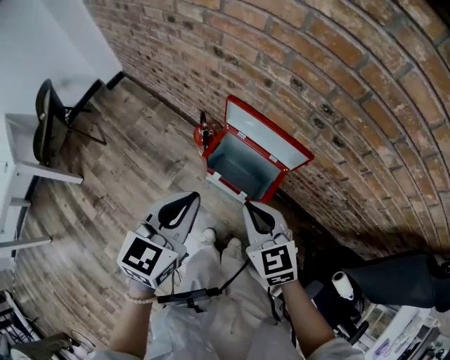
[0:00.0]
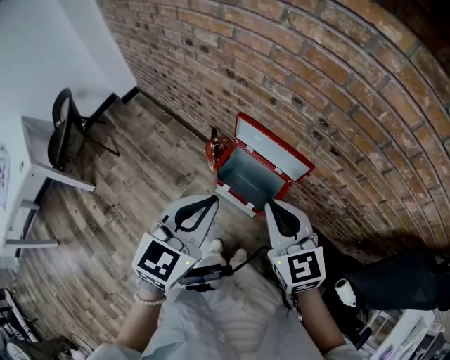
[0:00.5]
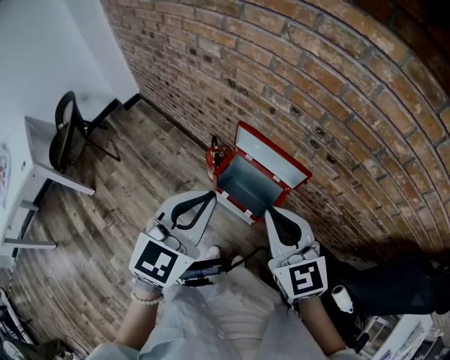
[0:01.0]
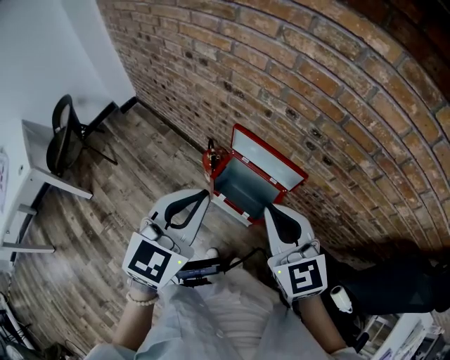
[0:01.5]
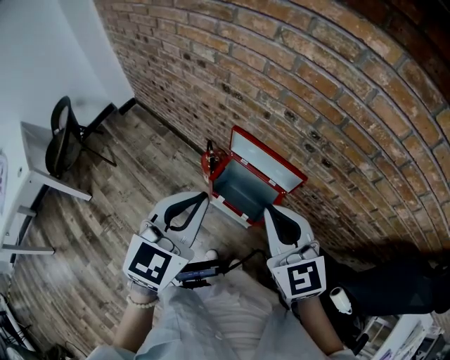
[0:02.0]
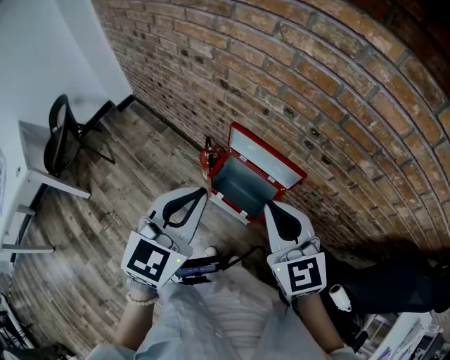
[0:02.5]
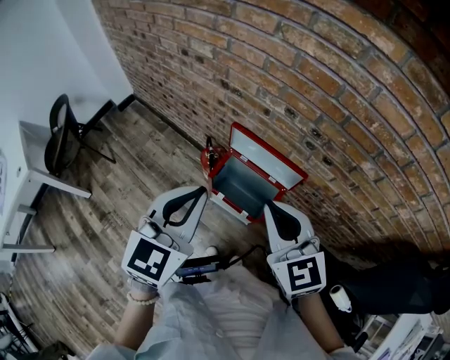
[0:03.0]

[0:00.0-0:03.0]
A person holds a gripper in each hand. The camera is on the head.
0:00.0 to 0:01.5: The two grippers go roughly 15 cm upward.
0:01.5 to 0:03.0: The grippers make only small movements.

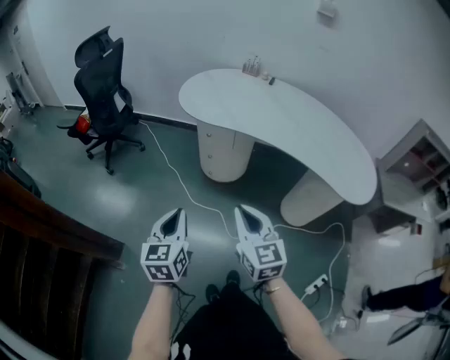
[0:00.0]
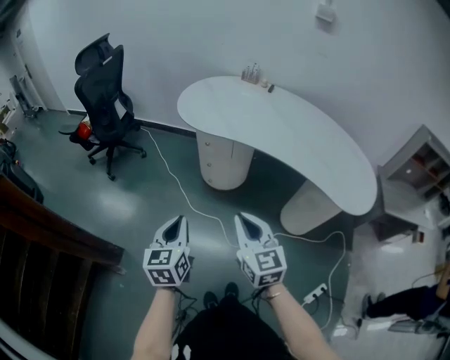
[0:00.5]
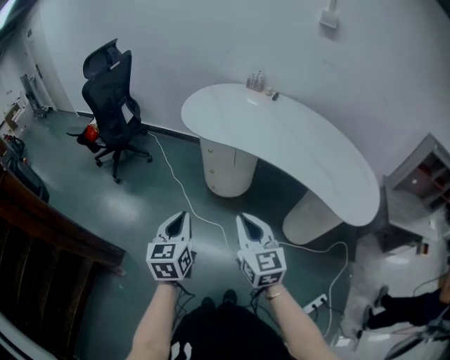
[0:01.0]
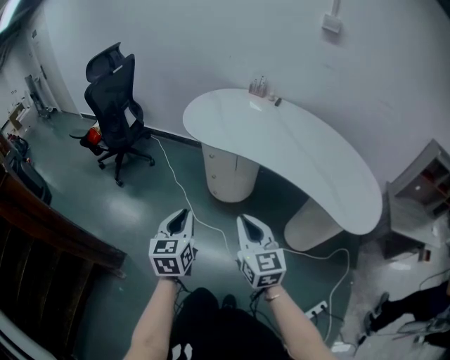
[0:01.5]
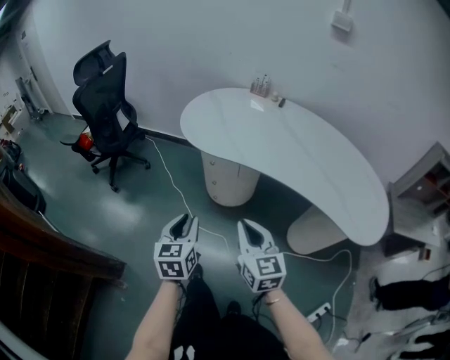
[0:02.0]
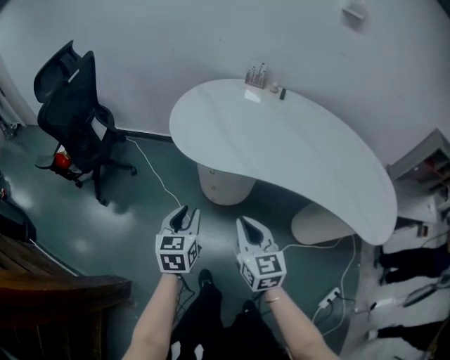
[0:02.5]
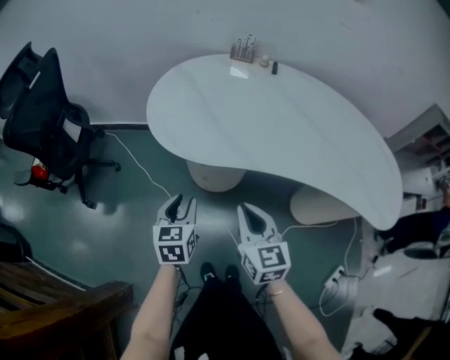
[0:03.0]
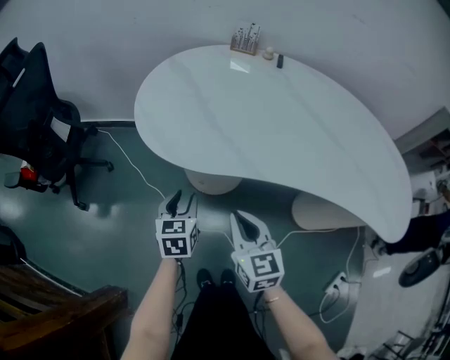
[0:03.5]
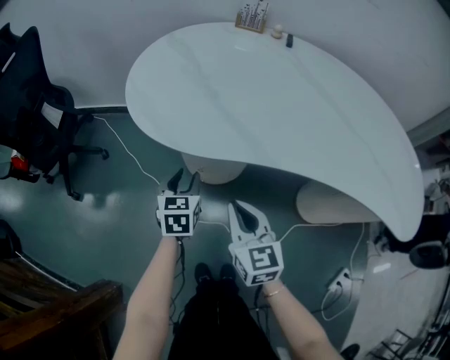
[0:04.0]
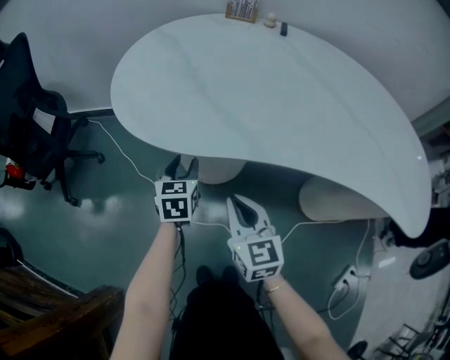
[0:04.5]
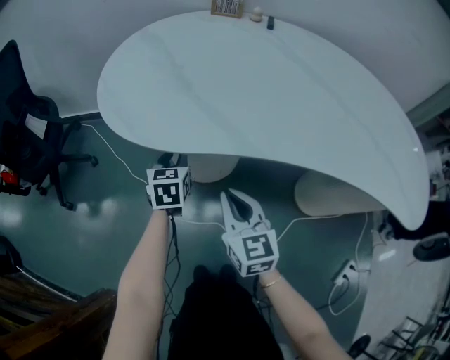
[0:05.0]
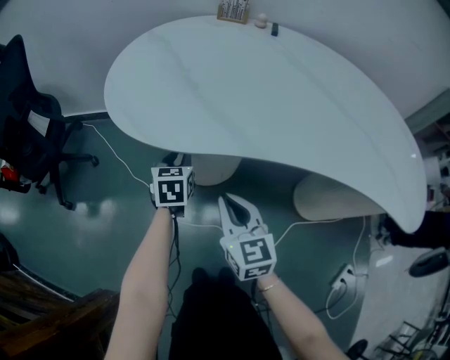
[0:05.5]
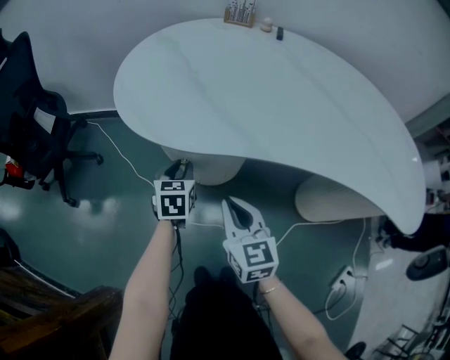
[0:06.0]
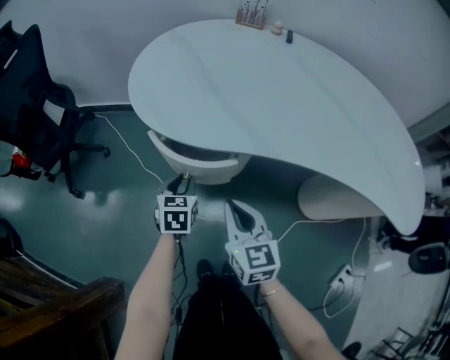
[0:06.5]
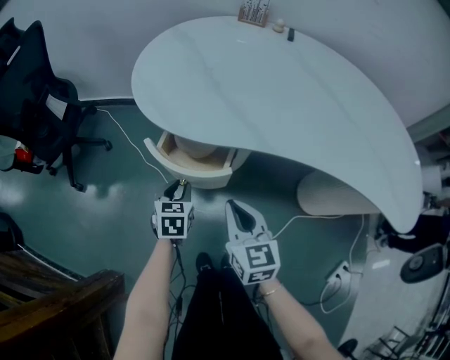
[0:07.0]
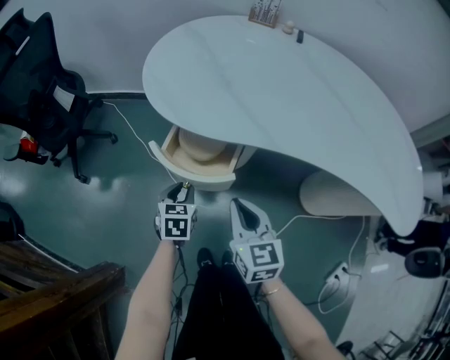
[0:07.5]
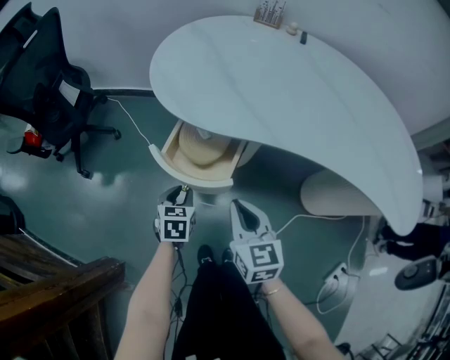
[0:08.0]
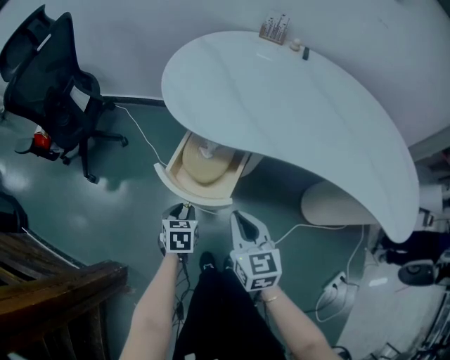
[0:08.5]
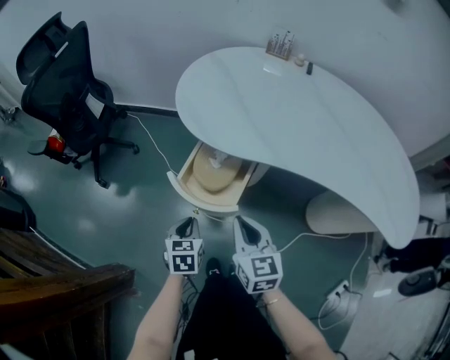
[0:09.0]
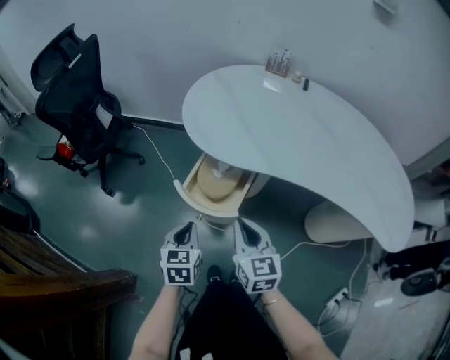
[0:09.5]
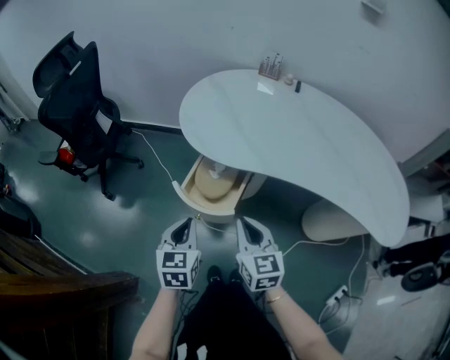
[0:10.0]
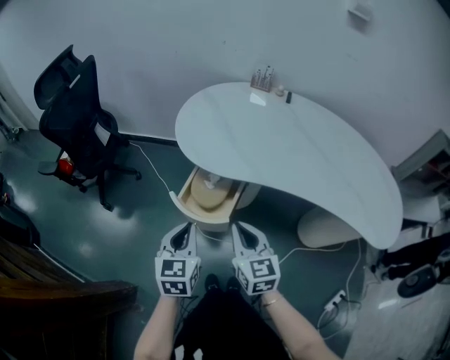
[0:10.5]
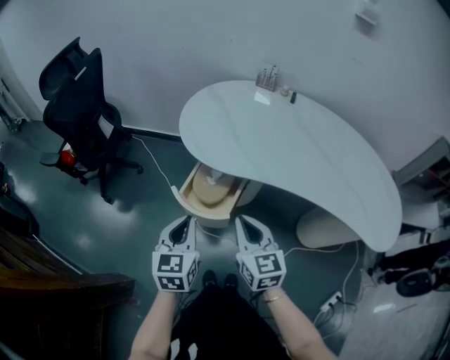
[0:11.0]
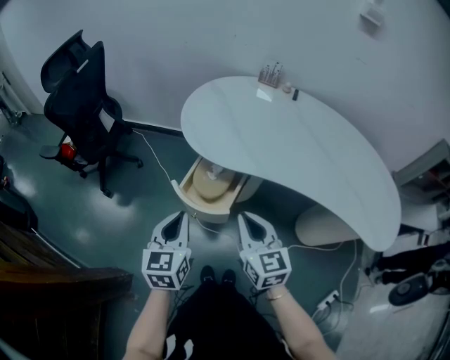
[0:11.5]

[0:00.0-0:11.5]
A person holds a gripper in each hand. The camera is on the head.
0:00.0 to 0:02.0: The two grippers go about 15 cm forward. The left gripper opens.
0:02.0 to 0:04.0: Both grippers move forward and downward, roughly 35 cm.
0:06.0 to 0:07.5: The right gripper ends up approximately 5 cm from where it was; the left gripper moves backward and to the left, some 15 cm.
0:07.5 to 0:09.5: The right gripper moves upward, approximately 10 cm. The left gripper moves upward and backward, some 20 cm, and closes up.
0:09.5 to 0:11.5: The right gripper heads upward, covering some 10 cm. The left gripper heads upward, covering roughly 15 cm.

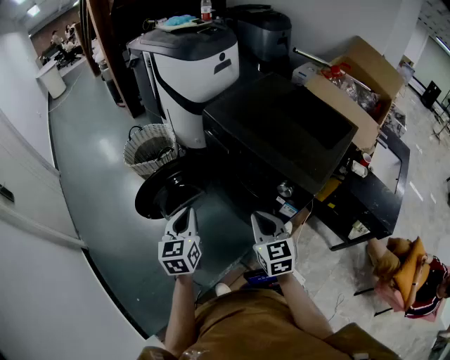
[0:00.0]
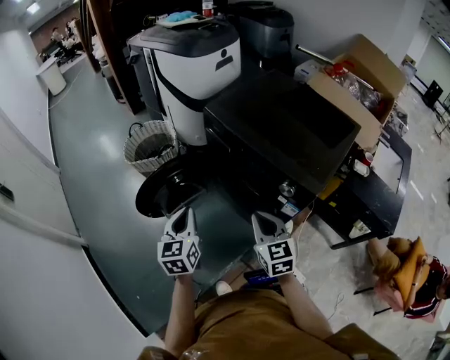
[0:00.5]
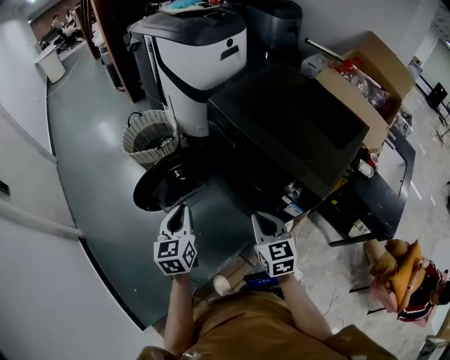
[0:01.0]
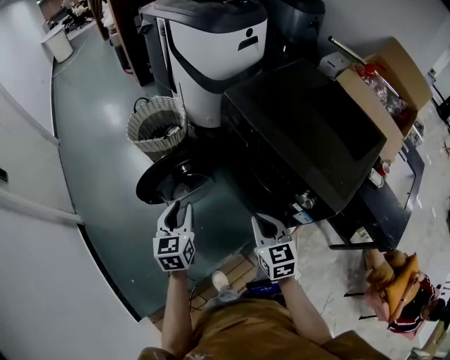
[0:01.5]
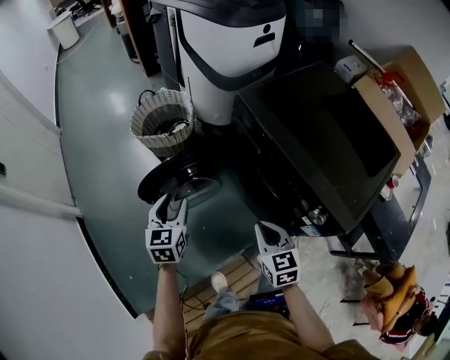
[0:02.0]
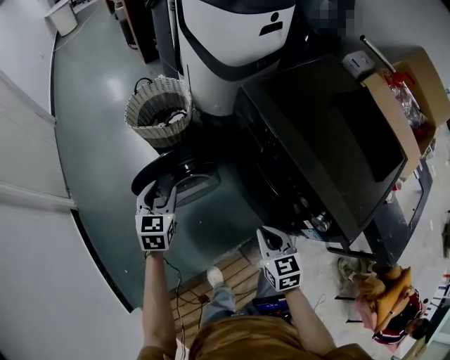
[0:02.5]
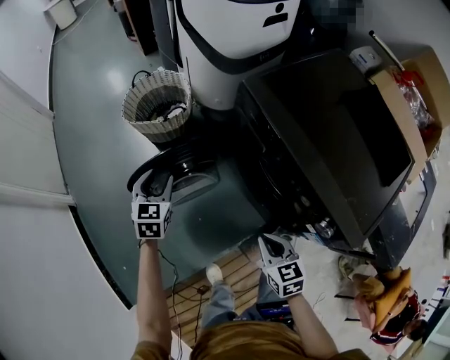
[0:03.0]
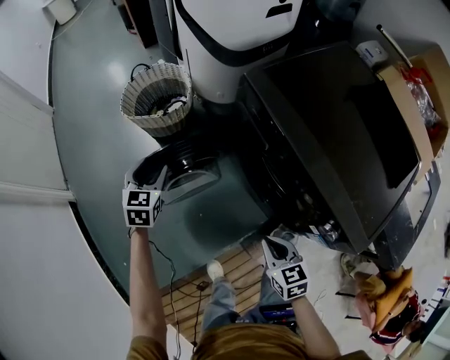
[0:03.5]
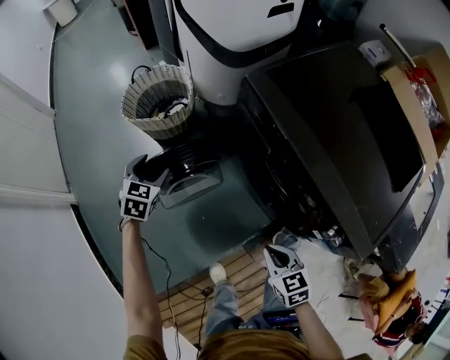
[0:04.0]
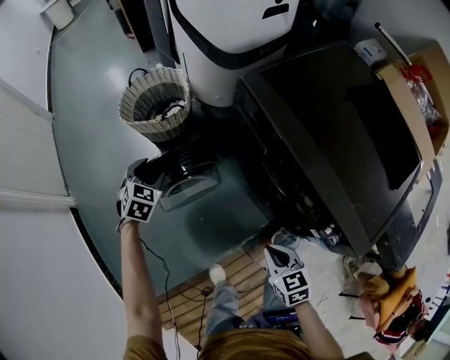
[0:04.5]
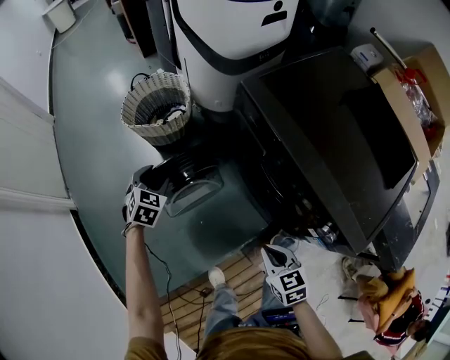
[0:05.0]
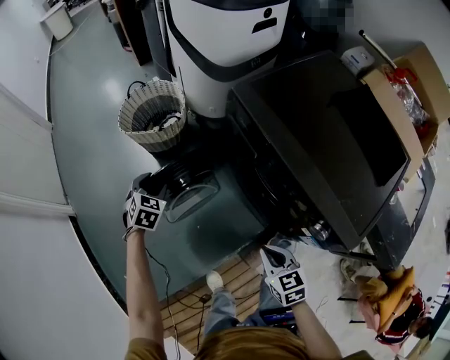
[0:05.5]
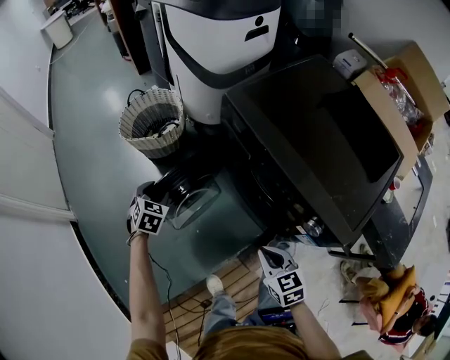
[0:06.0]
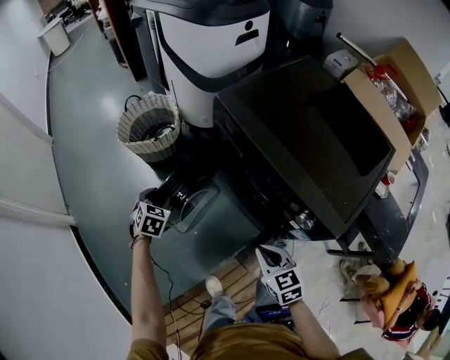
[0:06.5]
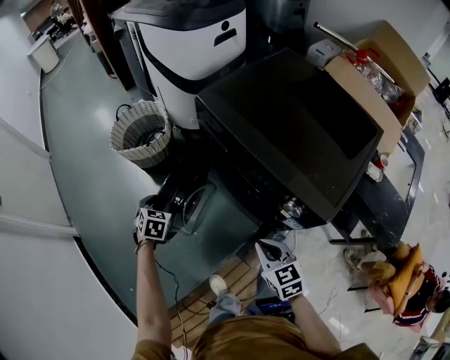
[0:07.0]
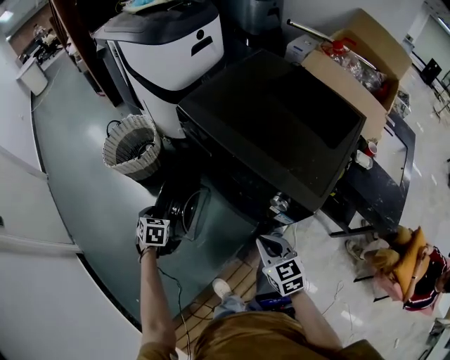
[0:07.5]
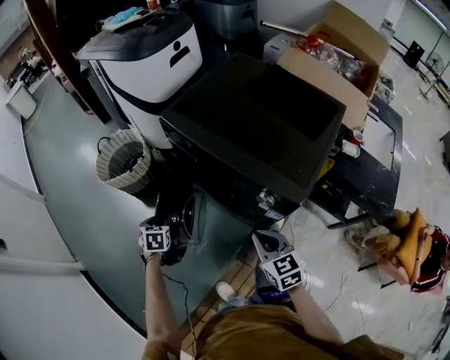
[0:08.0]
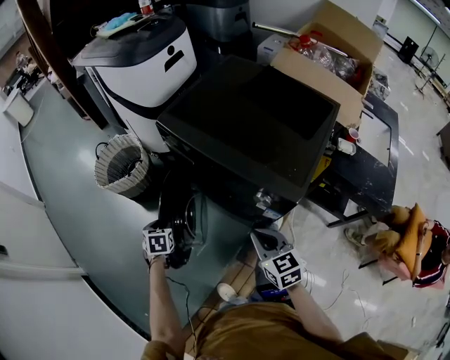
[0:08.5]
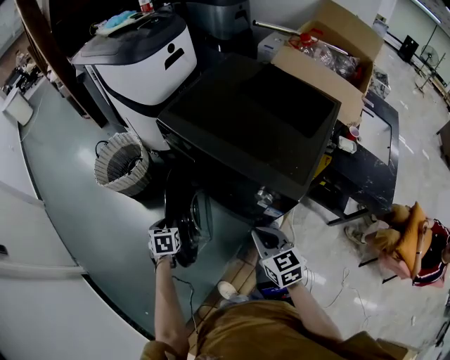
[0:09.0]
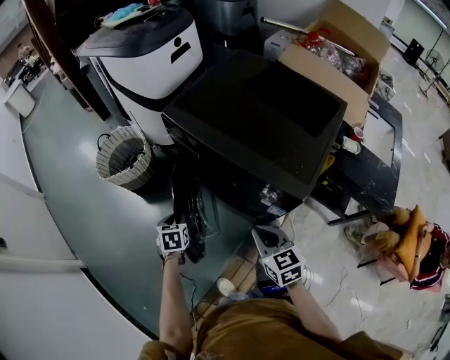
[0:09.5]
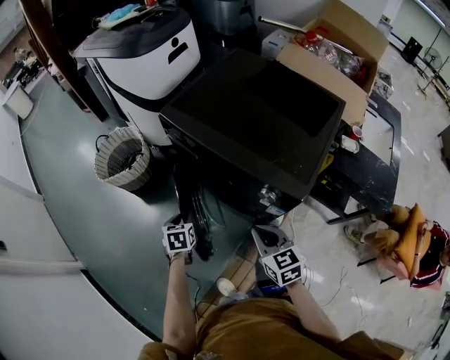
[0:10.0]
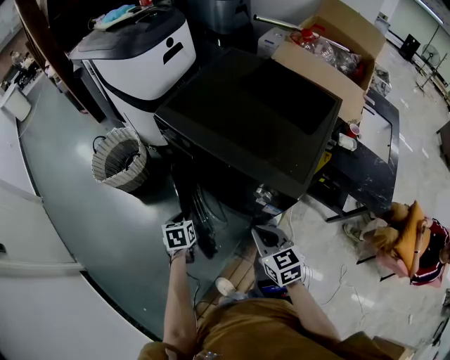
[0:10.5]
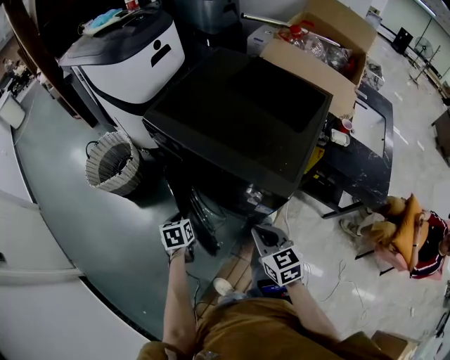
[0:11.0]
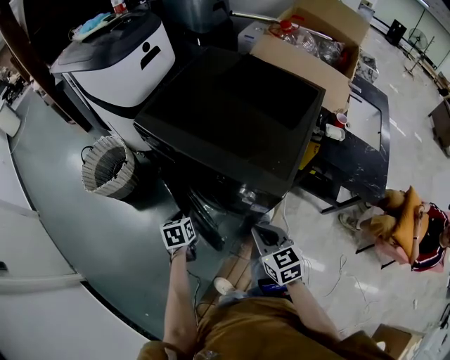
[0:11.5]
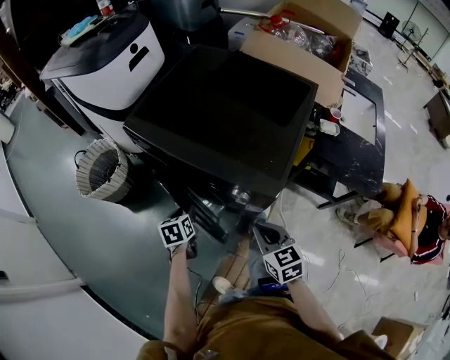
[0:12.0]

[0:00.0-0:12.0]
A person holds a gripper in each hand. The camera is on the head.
0:00.0 to 0:02.0: The right gripper is displaced forward and downward by roughly 15 cm; the left gripper travels forward, downward and to the left by some 20 cm, and opens up.
0:02.0 to 0:04.0: The right gripper travels downward by about 10 cm. The left gripper shifts roughly 20 cm forward and downward, and changes its angle by some 30 degrees.
0:04.0 to 0:06.0: The left gripper shifts about 5 cm backward; the right gripper shifts by some 5 cm.
0:06.0 to 0:08.0: The left gripper heads backward and to the right, covering approximately 10 cm. Meanwhile the right gripper shifts approximately 10 cm upward, to the right and backward.
0:08.0 to 0:10.0: The left gripper shifts some 10 cm to the right.
0:10.0 to 0:12.0: The two grippers go approximately 10 cm to the right.
